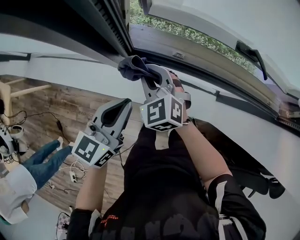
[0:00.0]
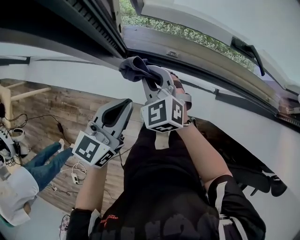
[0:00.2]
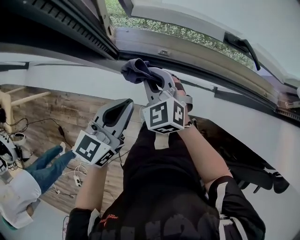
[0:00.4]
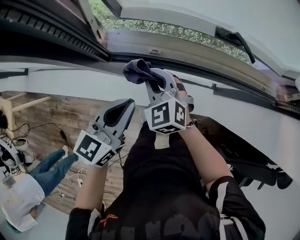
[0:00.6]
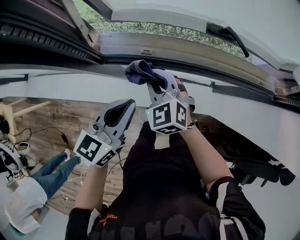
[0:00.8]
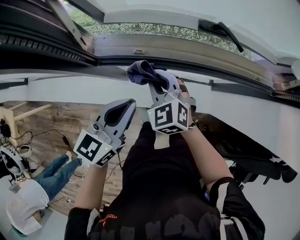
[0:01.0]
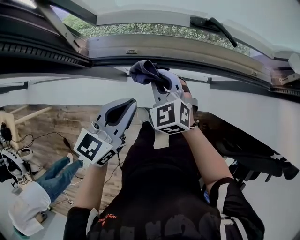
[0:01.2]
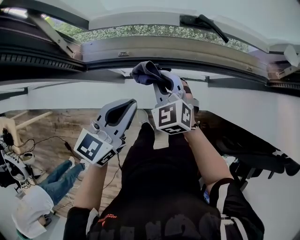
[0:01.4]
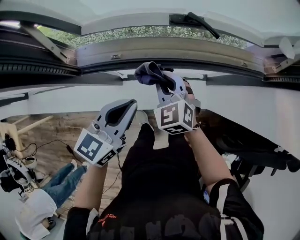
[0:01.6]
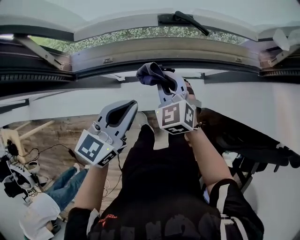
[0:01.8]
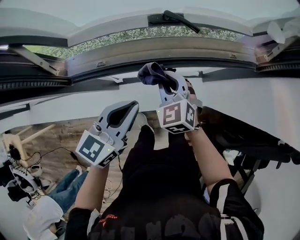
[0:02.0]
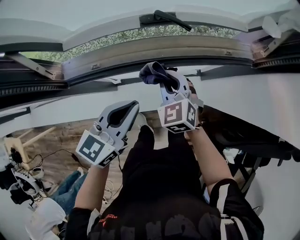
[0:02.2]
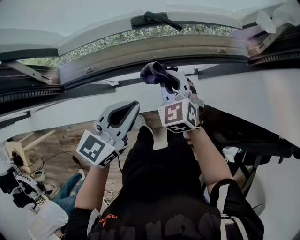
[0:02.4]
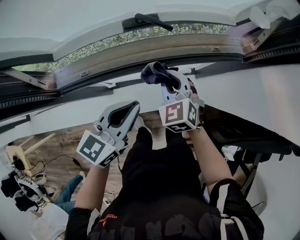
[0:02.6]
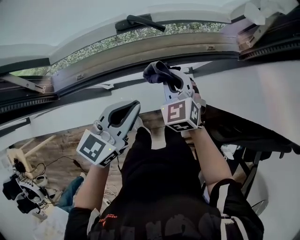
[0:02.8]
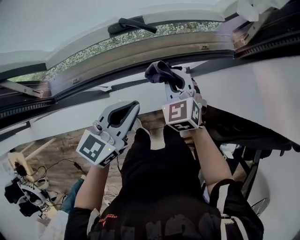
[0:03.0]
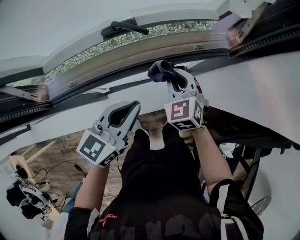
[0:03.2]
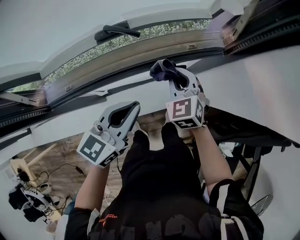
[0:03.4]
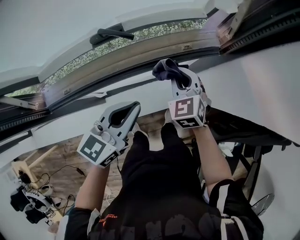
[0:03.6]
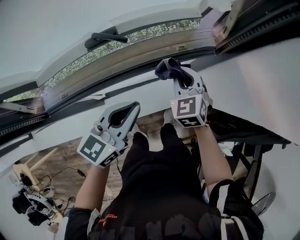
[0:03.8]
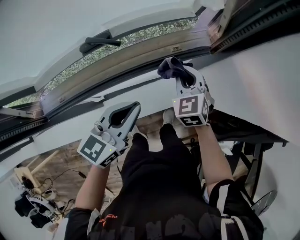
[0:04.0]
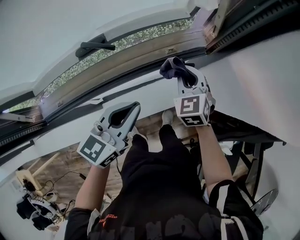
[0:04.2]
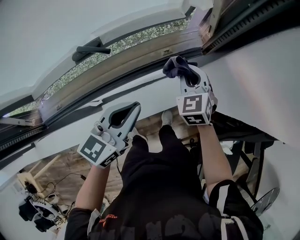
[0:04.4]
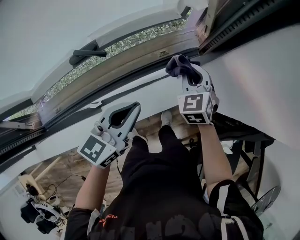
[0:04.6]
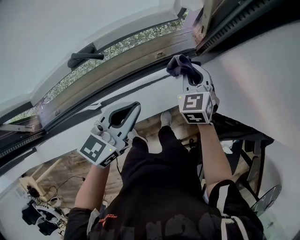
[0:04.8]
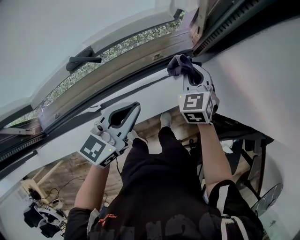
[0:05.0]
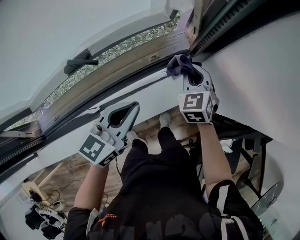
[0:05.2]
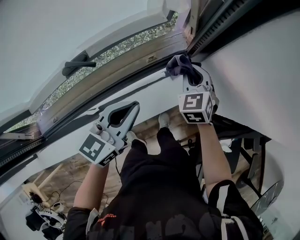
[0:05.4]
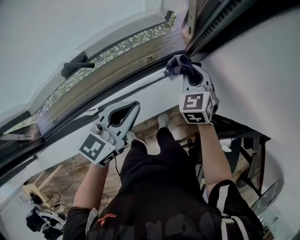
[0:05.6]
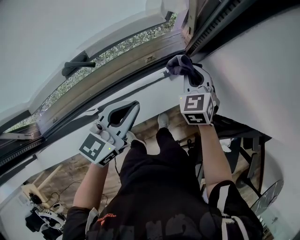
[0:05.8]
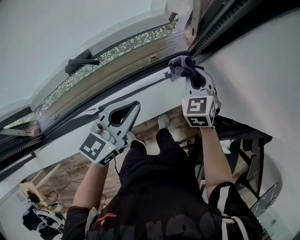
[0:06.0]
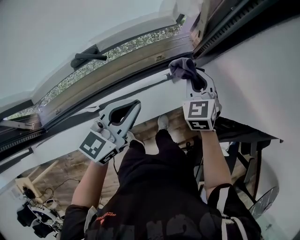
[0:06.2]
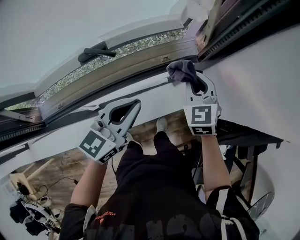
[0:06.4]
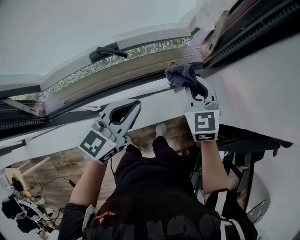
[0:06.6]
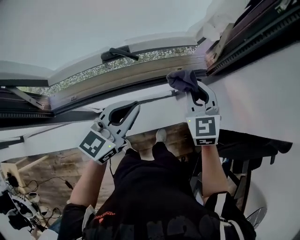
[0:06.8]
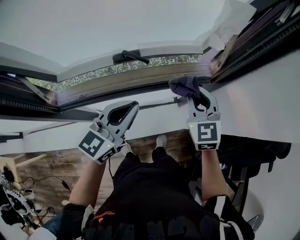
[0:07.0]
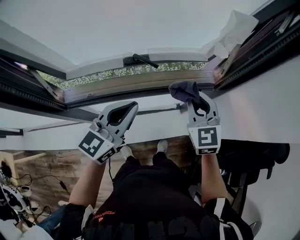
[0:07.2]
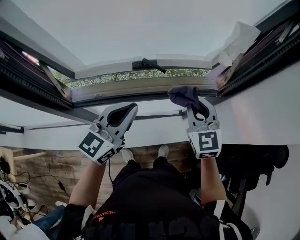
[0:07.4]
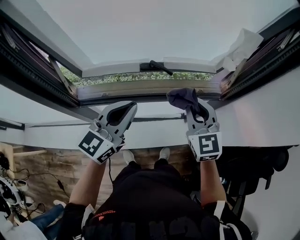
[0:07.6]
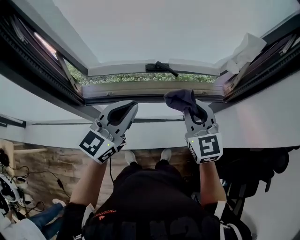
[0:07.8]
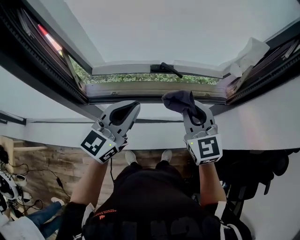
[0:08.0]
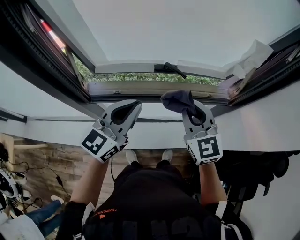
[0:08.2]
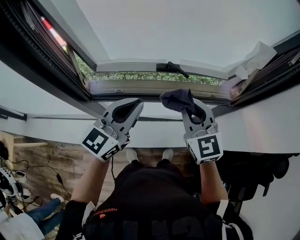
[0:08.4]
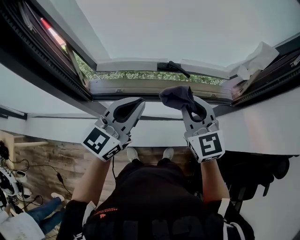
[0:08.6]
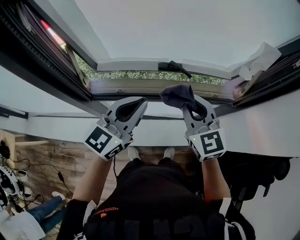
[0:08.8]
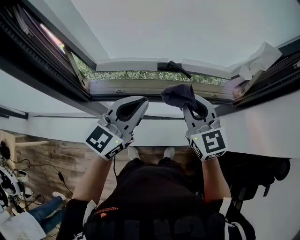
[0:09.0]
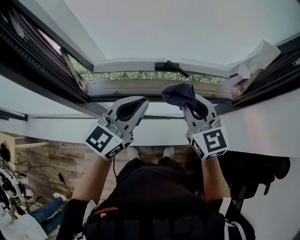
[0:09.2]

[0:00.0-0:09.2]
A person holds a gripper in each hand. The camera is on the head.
0:00.0 to 0:01.6: The two grippers go roughly 20 cm to the right. The right gripper turns by approximately 20 degrees; the left gripper changes its angle by about 20 degrees.
0:01.6 to 0:03.0: The grippers both shift to the right by some 20 cm.
0:03.0 to 0:04.6: The left gripper goes roughly 15 cm to the right and forward; the right gripper moves to the right and forward, roughly 20 cm, and changes its angle by some 20 degrees.
0:04.6 to 0:06.2: The grippers move only a little.
0:06.2 to 0:07.6: Both grippers travel together to the left, upward and backward, roughly 30 cm. The left gripper swivels roughly 30 degrees. The right gripper swivels about 30 degrees.
0:07.6 to 0:09.2: The right gripper moves to the left, approximately 10 cm.

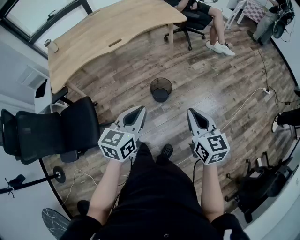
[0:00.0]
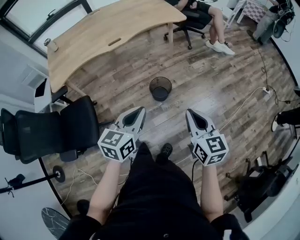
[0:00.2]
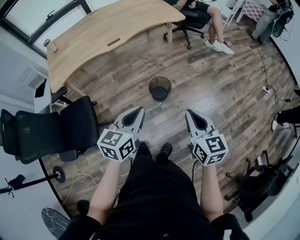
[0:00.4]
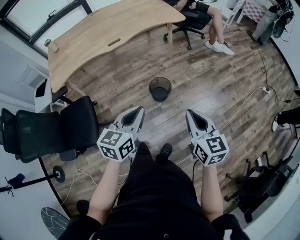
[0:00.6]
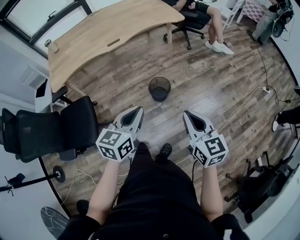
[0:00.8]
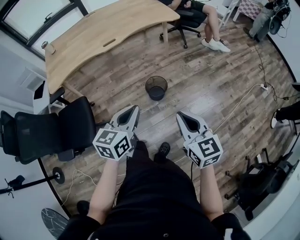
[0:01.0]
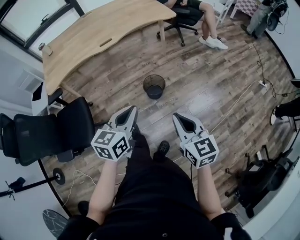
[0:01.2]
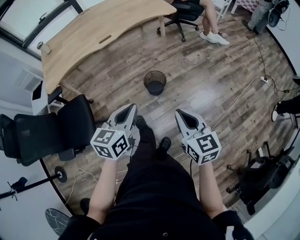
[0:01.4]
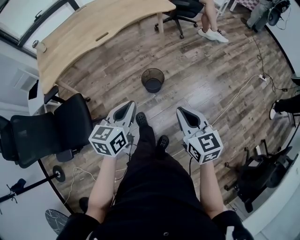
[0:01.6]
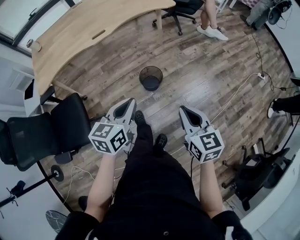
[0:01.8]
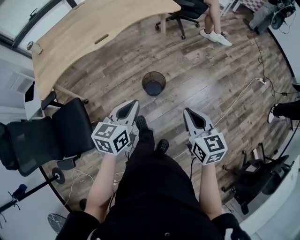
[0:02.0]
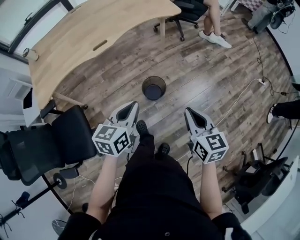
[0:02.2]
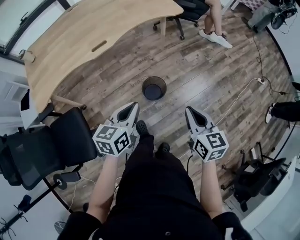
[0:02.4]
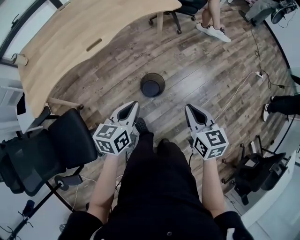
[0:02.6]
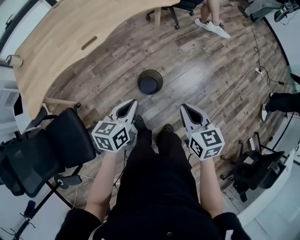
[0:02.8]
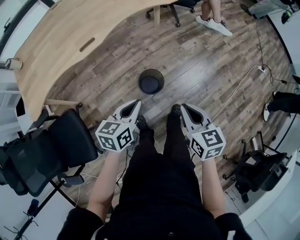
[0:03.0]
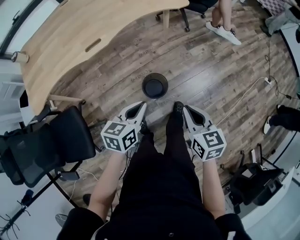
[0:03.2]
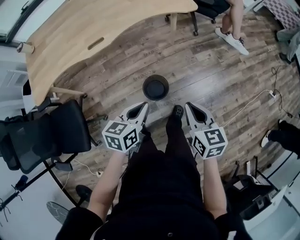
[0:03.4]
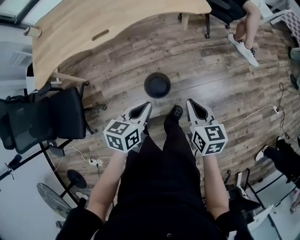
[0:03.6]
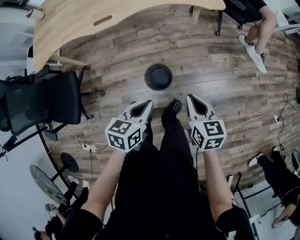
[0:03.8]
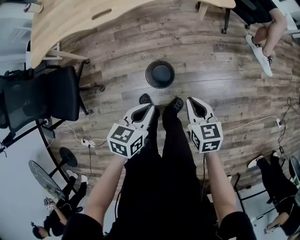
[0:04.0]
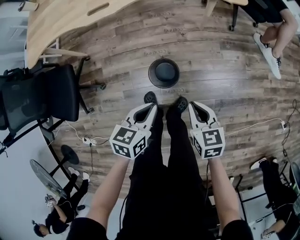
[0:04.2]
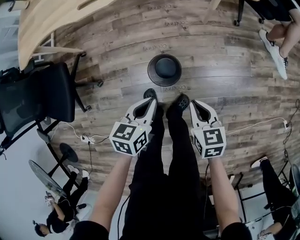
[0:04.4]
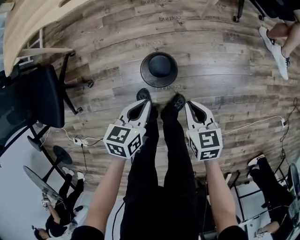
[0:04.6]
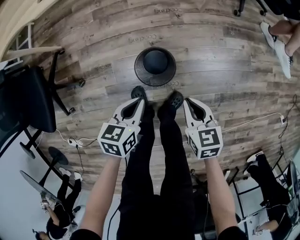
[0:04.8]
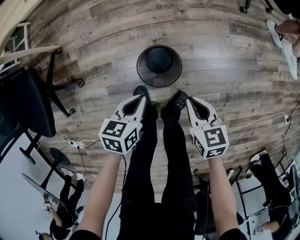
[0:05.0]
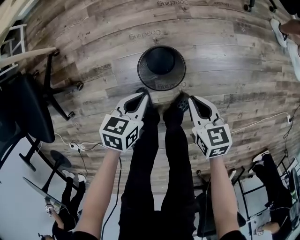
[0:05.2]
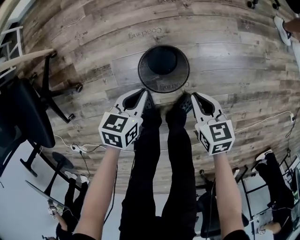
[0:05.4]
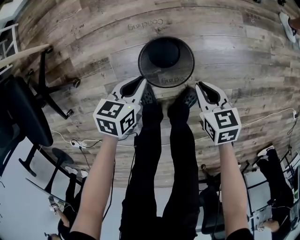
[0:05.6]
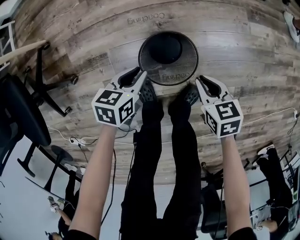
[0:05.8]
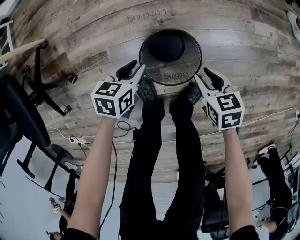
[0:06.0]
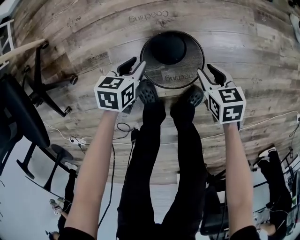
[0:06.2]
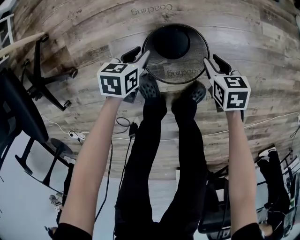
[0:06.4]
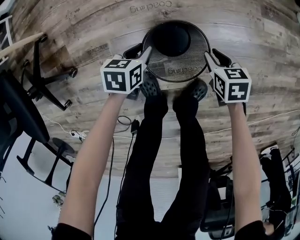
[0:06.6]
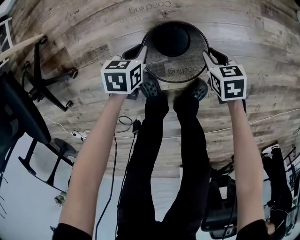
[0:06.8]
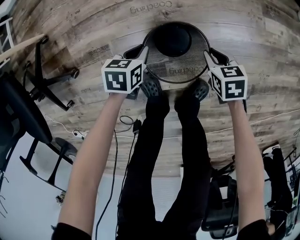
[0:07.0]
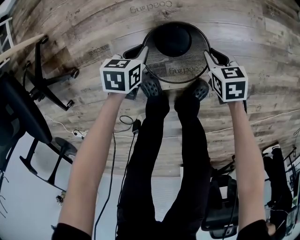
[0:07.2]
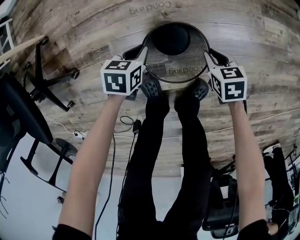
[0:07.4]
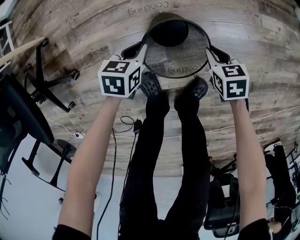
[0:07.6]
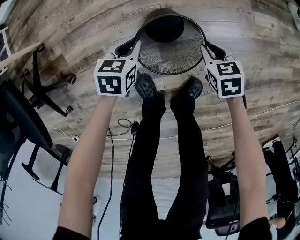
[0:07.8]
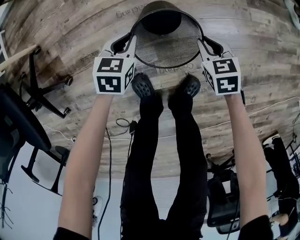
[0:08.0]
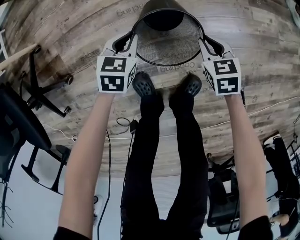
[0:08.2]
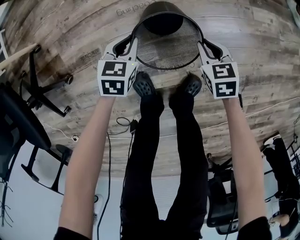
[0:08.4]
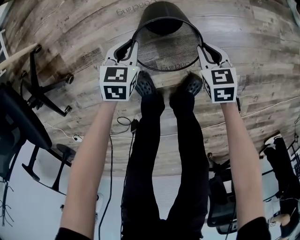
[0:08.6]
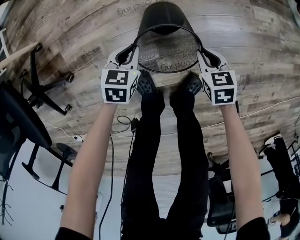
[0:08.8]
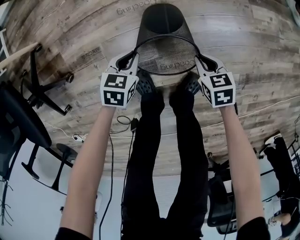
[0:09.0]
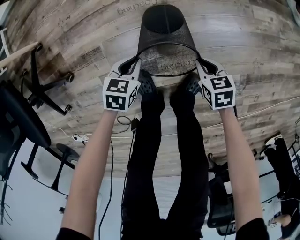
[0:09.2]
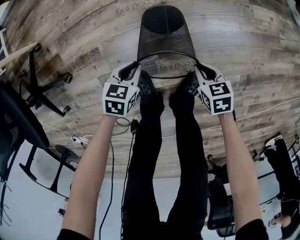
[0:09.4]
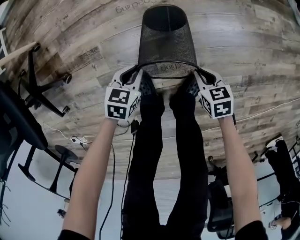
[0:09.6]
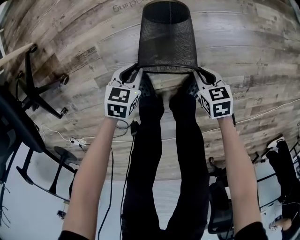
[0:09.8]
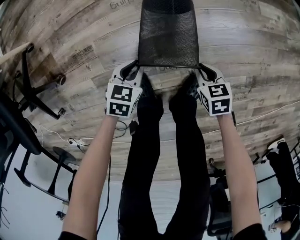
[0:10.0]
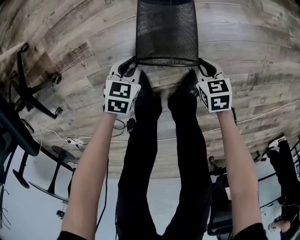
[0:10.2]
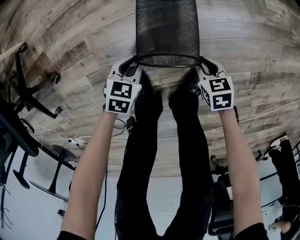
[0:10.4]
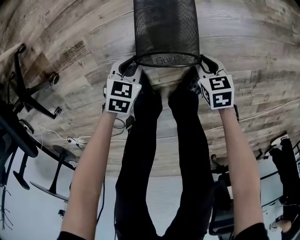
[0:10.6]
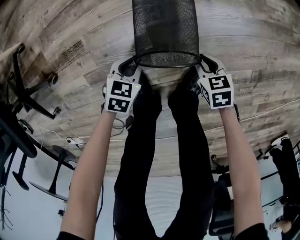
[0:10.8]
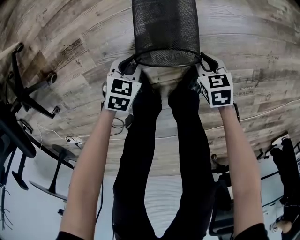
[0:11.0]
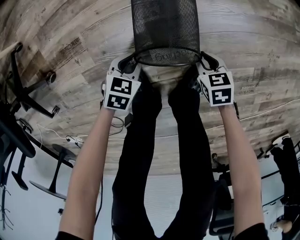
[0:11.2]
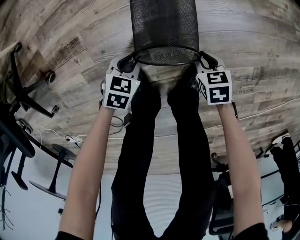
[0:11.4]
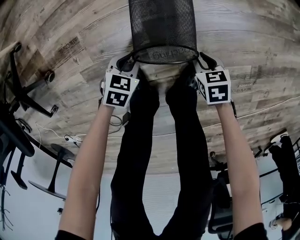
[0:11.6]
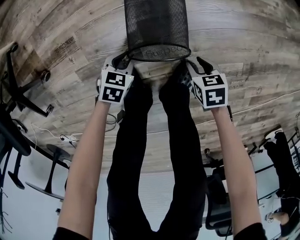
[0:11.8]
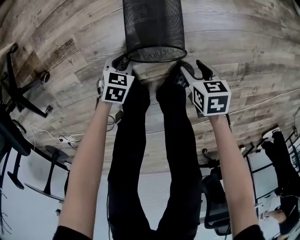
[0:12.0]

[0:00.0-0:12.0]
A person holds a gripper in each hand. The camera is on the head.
0:00.0 to 0:01.6: There are only small adjustments of the grippers.
0:01.6 to 0:03.0: The left gripper travels forward and downward by some 20 cm. The right gripper heads forward, covering roughly 20 cm.
0:03.0 to 0:04.4: The grippers both shift downward by about 20 cm. The left gripper swivels some 30 degrees; the right gripper changes its angle by about 30 degrees.
0:04.4 to 0:06.0: The two grippers go some 35 cm downward.
0:06.0 to 0:07.6: The right gripper shifts roughly 5 cm downward; the left gripper shifts by some 5 cm.
0:07.6 to 0:09.0: The left gripper moves some 5 cm, while the right gripper heads backward, covering roughly 5 cm.
0:09.0 to 0:10.4: Both grippers travel together downward and backward, some 15 cm.
0:10.4 to 0:12.0: The right gripper moves some 5 cm, and opens.

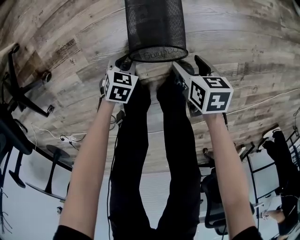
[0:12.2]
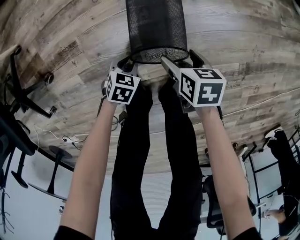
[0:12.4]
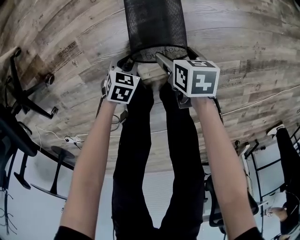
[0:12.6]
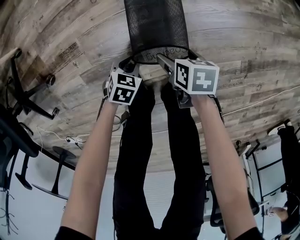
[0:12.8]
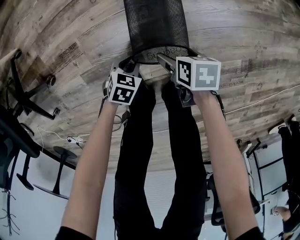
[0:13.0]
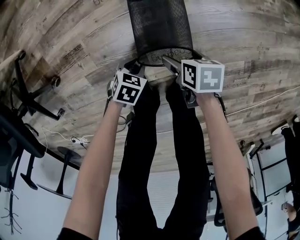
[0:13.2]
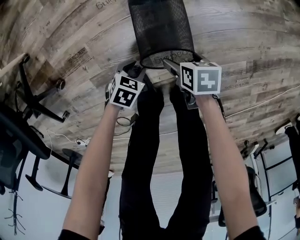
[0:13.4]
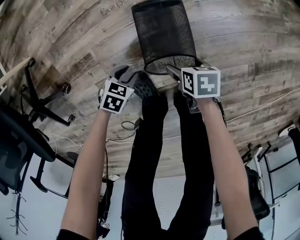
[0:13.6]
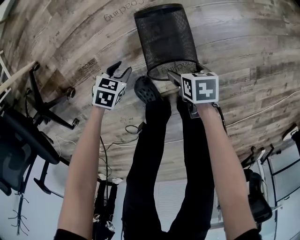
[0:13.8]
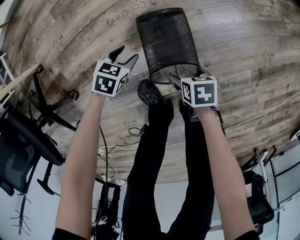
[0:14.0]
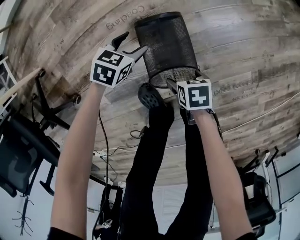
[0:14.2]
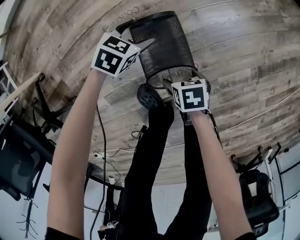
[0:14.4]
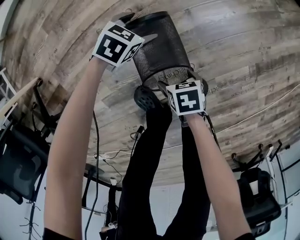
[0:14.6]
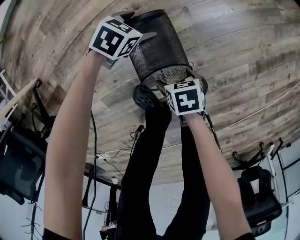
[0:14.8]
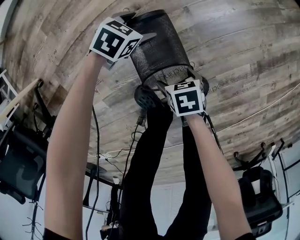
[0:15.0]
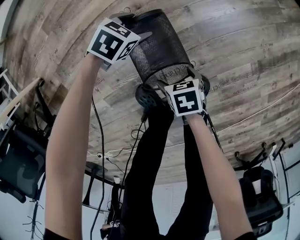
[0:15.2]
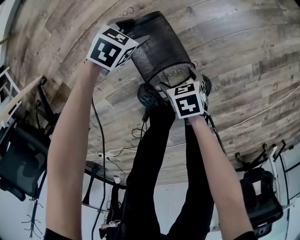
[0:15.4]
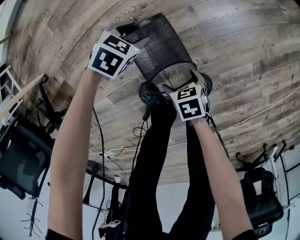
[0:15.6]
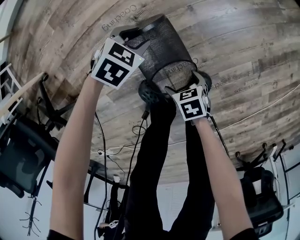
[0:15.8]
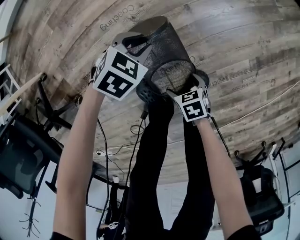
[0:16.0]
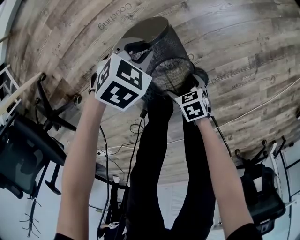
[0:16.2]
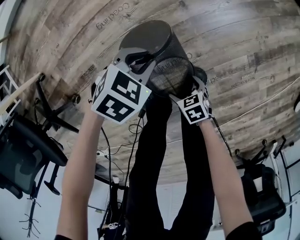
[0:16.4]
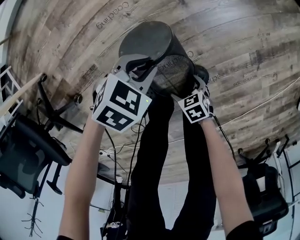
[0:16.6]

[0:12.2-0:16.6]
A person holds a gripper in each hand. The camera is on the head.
0:12.2 to 0:13.6: The right gripper ends up some 5 cm from where it was. The left gripper shifts by roughly 5 cm.
0:13.6 to 0:15.2: The left gripper moves approximately 25 cm, turns by roughly 20 degrees, and opens up.
0:15.2 to 0:16.6: The left gripper ends up approximately 20 cm from where it was, and closes; the right gripper shifts by approximately 15 cm.
